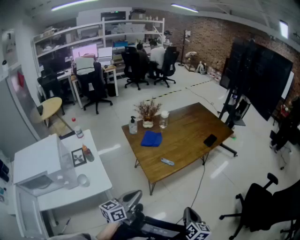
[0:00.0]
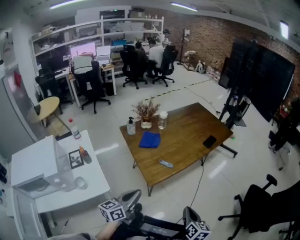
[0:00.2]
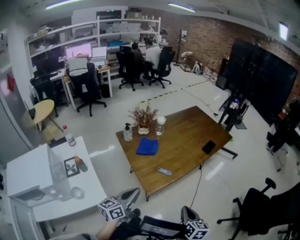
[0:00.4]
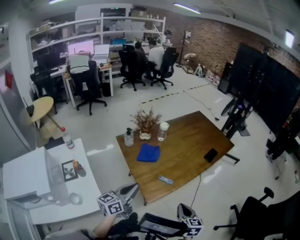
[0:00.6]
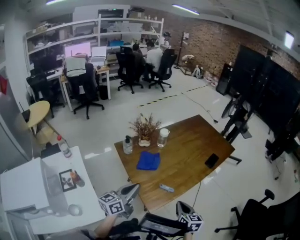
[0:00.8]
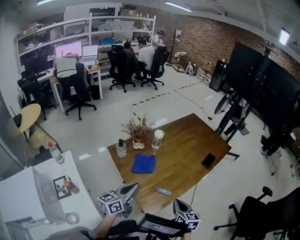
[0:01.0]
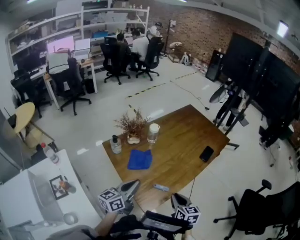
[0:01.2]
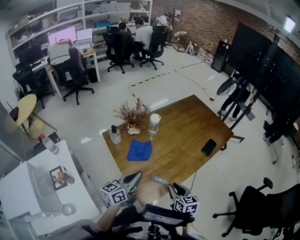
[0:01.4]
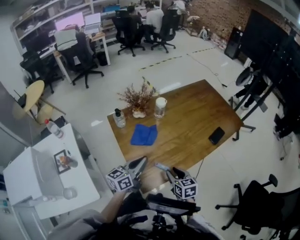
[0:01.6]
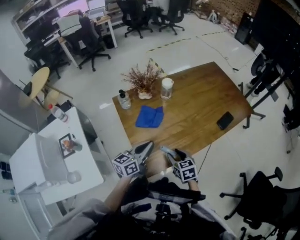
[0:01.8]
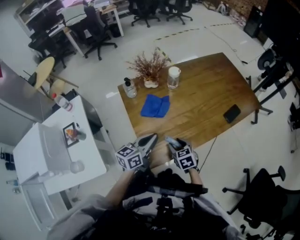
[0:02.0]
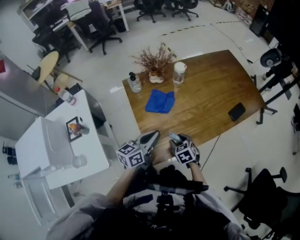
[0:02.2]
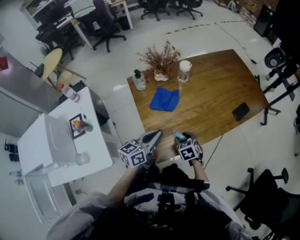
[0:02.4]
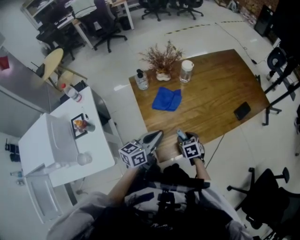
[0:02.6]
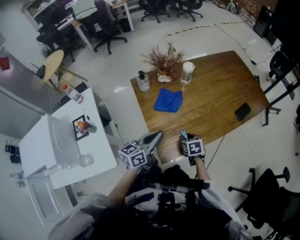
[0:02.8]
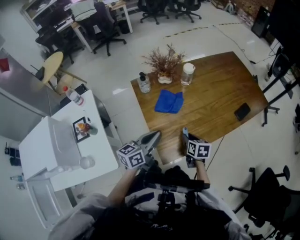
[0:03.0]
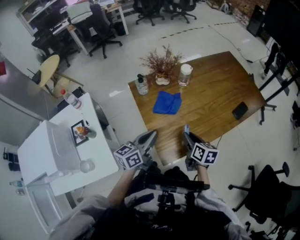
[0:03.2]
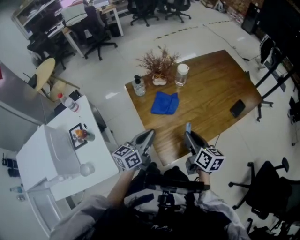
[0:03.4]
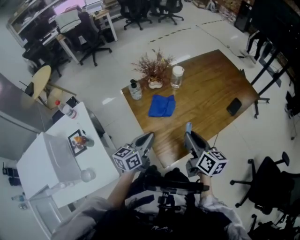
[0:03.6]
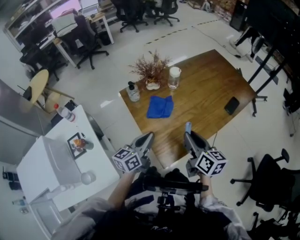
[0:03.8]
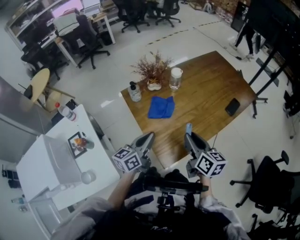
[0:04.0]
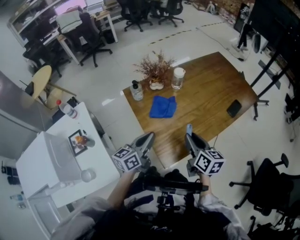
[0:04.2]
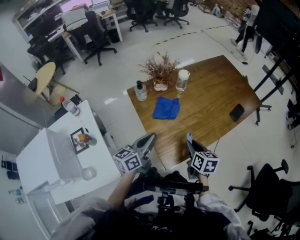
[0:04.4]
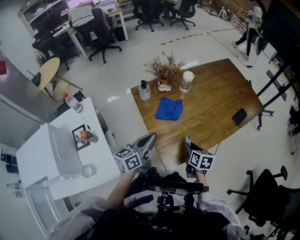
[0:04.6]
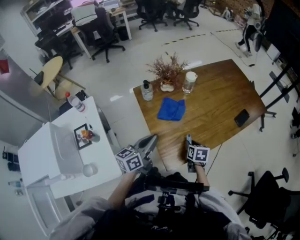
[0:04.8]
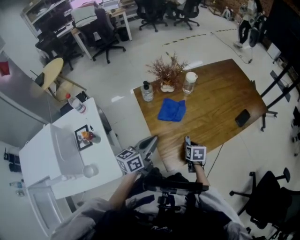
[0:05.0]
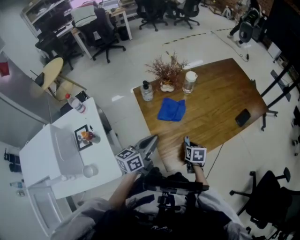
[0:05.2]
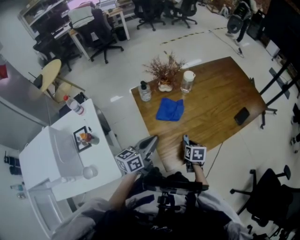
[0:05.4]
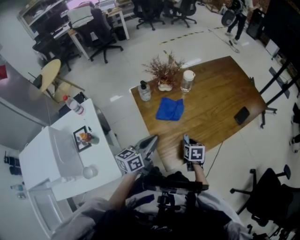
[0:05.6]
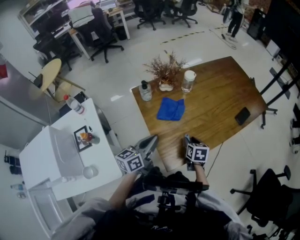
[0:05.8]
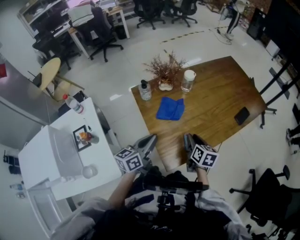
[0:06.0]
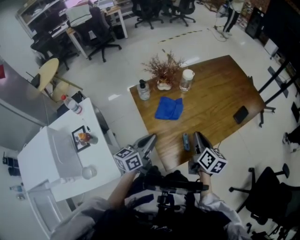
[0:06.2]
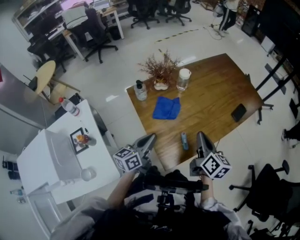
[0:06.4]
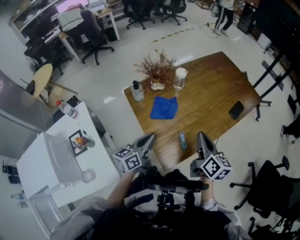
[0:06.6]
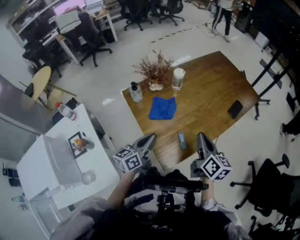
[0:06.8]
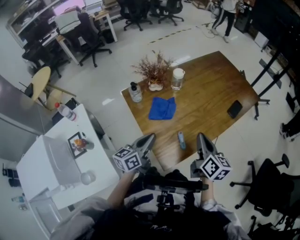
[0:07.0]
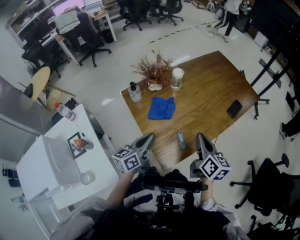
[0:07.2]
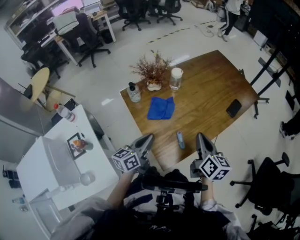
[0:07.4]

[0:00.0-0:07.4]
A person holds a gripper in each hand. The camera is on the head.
0.0 to 1.4 s: The left gripper is displaced forward by some 30 cm. Meanwhile the right gripper travels forward and to the left by about 30 cm, changes its angle by roughly 30 degrees, and opens its fingers.
1.4 to 3.0 s: The right gripper shifts roughly 10 cm forward, downward and to the left.
3.0 to 4.4 s: The right gripper shifts roughly 10 cm upward.
4.4 to 6.0 s: The right gripper travels downward and back again, roughly 15 cm each way.
6.0 to 7.4 s: The right gripper is displaced upward by about 10 cm, and closes its fingers.

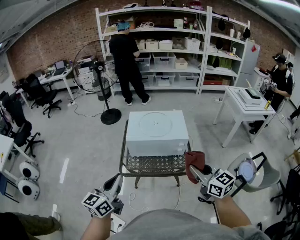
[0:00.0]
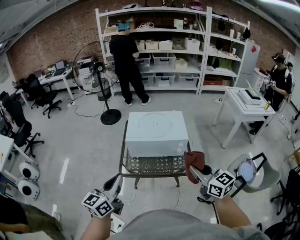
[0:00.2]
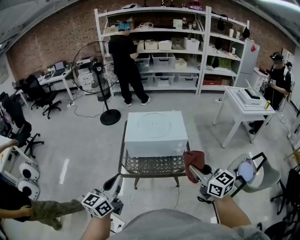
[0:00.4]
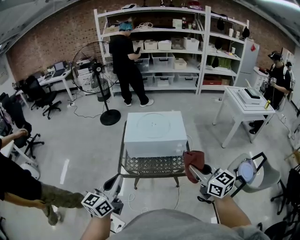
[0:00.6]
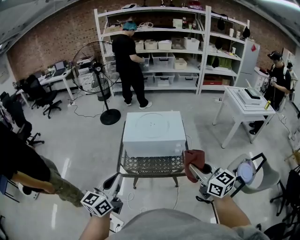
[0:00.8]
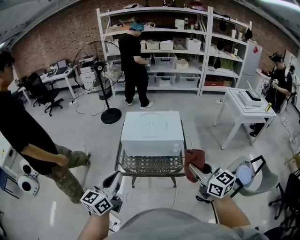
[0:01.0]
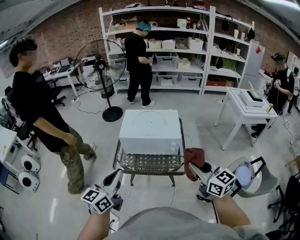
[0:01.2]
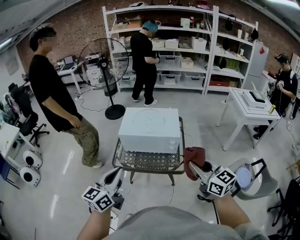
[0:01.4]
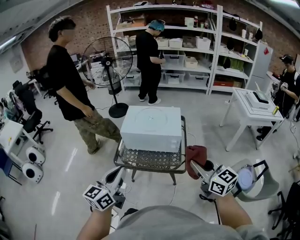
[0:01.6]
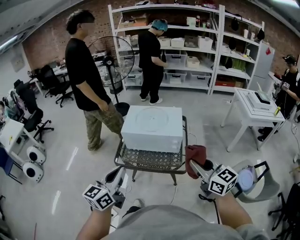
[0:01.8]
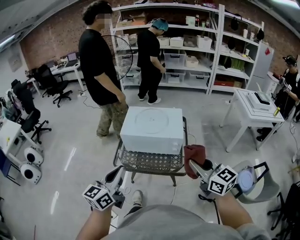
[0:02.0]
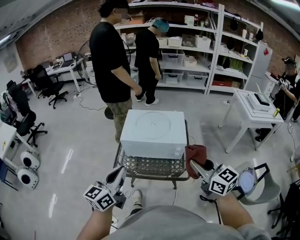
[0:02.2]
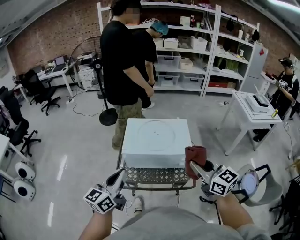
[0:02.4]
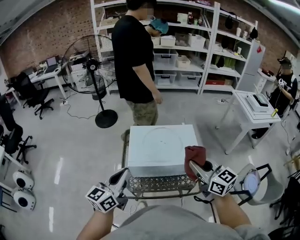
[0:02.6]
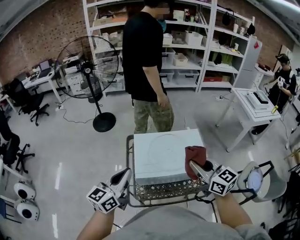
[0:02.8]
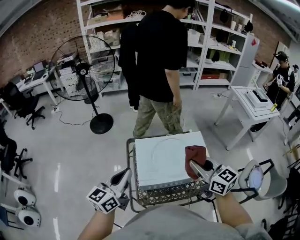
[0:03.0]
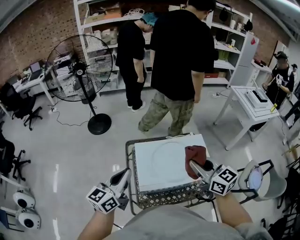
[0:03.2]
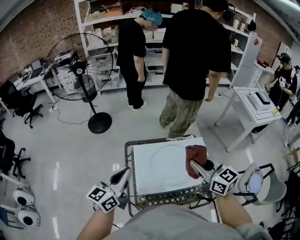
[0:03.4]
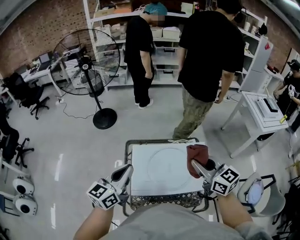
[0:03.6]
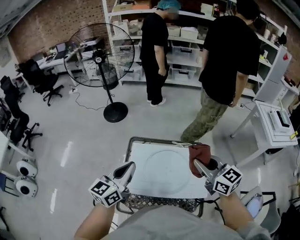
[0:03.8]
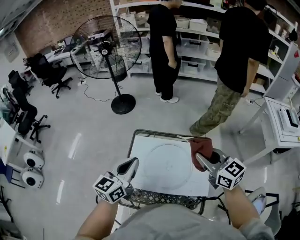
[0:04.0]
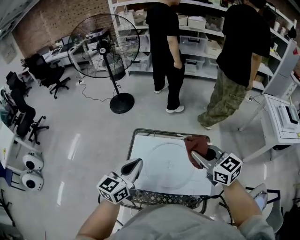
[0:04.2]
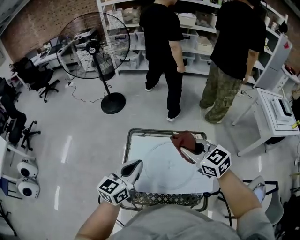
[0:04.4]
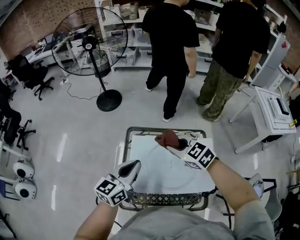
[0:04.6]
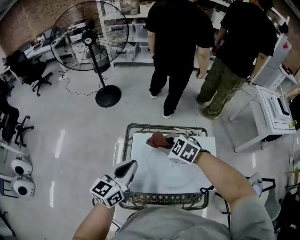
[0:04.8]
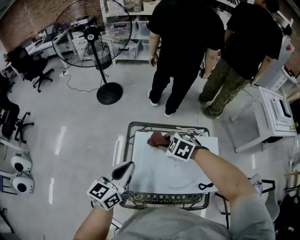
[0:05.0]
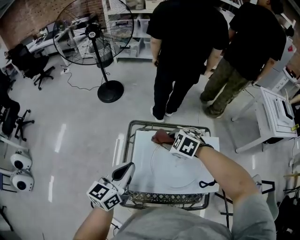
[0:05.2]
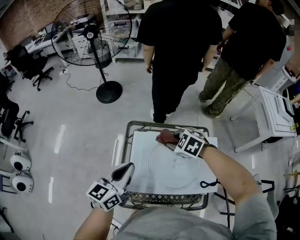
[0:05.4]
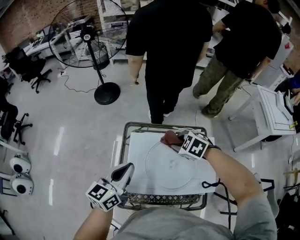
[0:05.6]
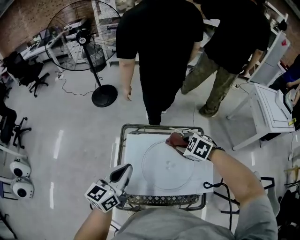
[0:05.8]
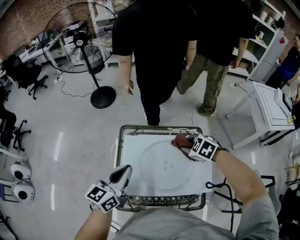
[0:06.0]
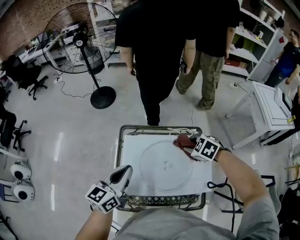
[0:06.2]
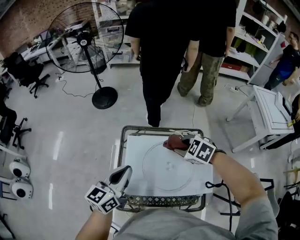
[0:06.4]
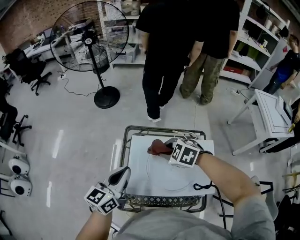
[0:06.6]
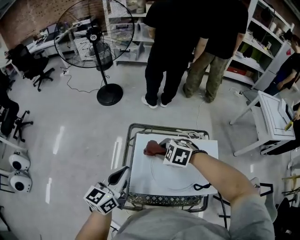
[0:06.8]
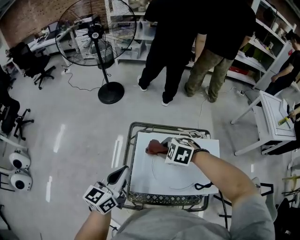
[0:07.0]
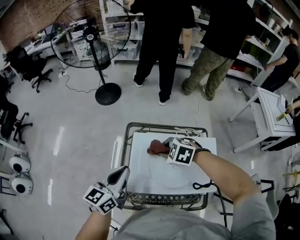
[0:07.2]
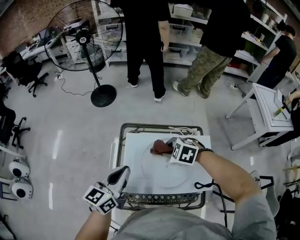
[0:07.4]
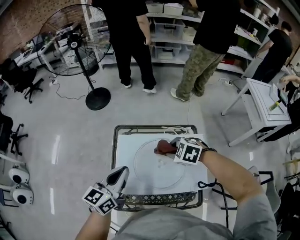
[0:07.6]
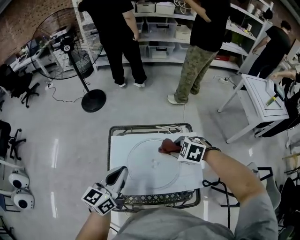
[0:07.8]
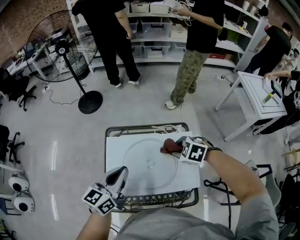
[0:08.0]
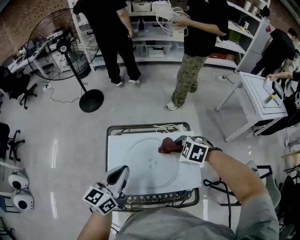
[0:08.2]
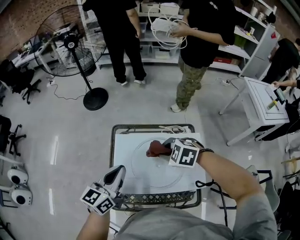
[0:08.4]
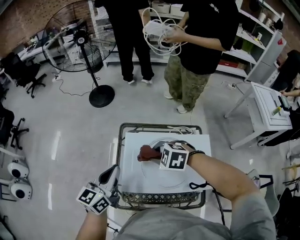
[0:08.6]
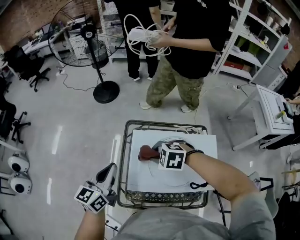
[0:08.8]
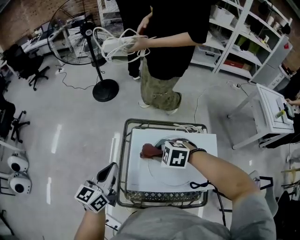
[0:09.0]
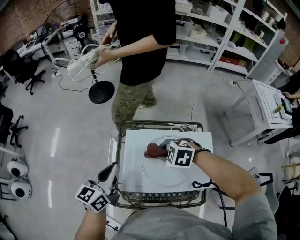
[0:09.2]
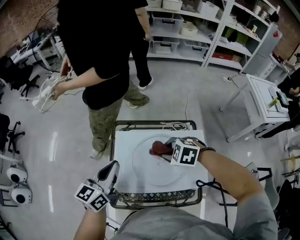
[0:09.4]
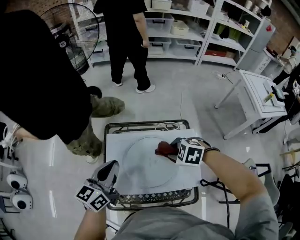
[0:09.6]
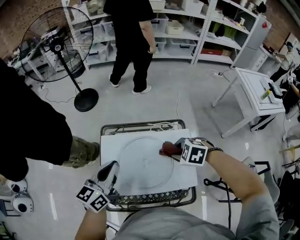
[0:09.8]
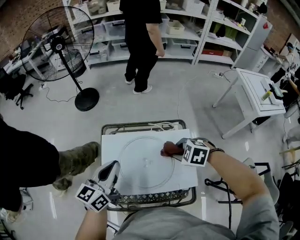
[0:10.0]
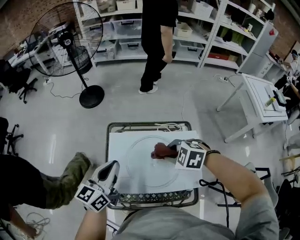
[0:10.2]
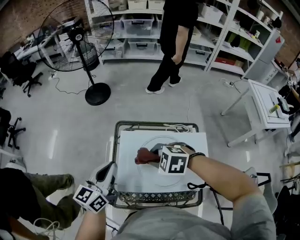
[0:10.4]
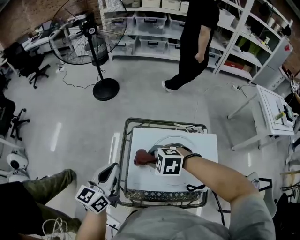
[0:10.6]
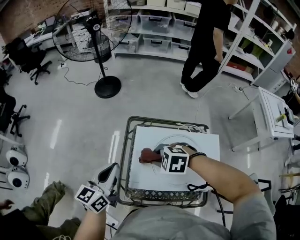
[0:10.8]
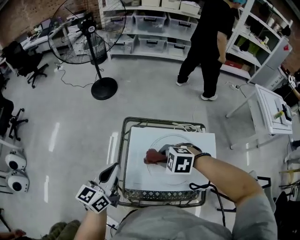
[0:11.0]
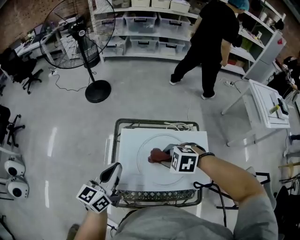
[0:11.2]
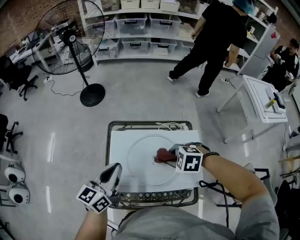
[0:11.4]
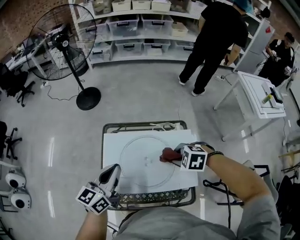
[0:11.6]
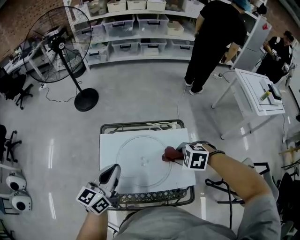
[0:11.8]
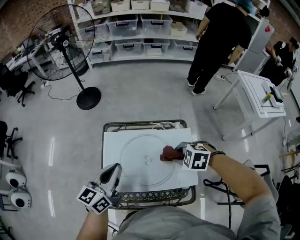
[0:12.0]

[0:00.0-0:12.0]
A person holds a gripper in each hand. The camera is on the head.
0.0 to 1.6 s: Both grippers travel together to the right, about 10 cm.
1.6 to 3.0 s: The pair of grippers is taken forward and to the left, some 40 cm.
3.0 to 4.4 s: The right gripper travels forward and downward by some 20 cm, and turns by about 30 degrees. Meanwhile the left gripper moves to the right, forward and downward, approximately 15 cm.
4.4 to 6.0 s: The right gripper is displaced downward by approximately 15 cm, goes to the left and returns, approximately 10 cm each way, and tips its fingers downward by roughly 40 degrees.
6.0 to 7.6 s: The right gripper goes to the left and returns, approximately 20 cm each way.
7.6 to 9.0 s: The grippers both shift to the left by roughly 10 cm.
9.0 to 10.4 s: The right gripper reaches some 20 cm to the right, then returns. Meanwhile the left gripper goes roughly 5 cm to the right.
10.4 to 12.0 s: The left gripper shifts some 10 cm to the right. Meanwhile the right gripper shifts roughly 20 cm to the right and backward.

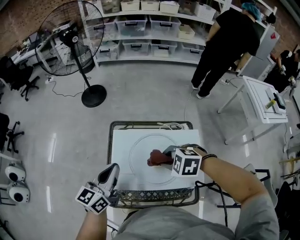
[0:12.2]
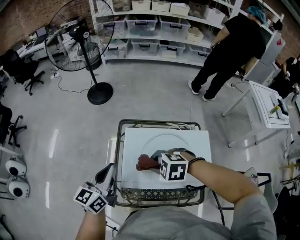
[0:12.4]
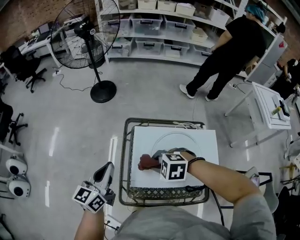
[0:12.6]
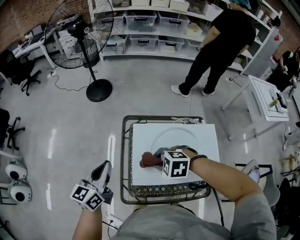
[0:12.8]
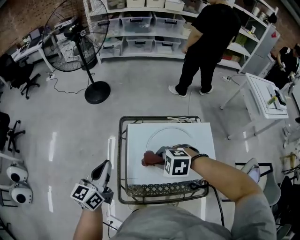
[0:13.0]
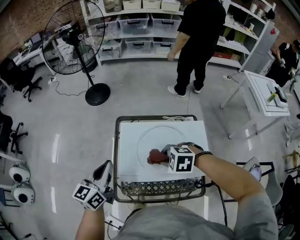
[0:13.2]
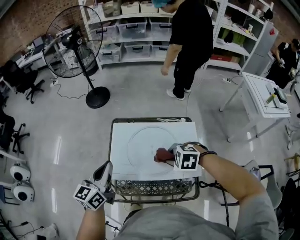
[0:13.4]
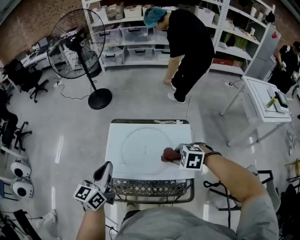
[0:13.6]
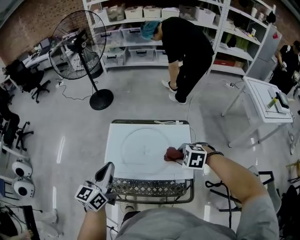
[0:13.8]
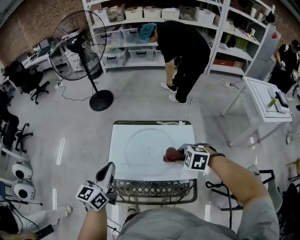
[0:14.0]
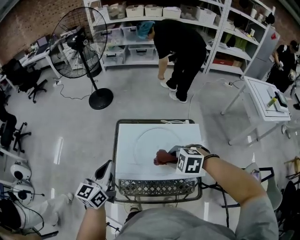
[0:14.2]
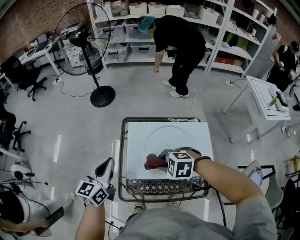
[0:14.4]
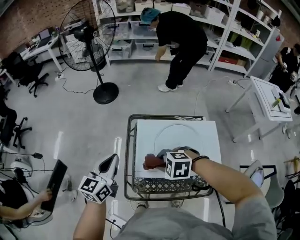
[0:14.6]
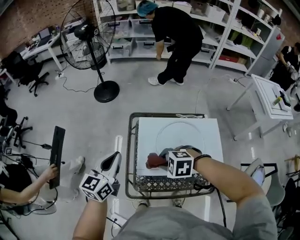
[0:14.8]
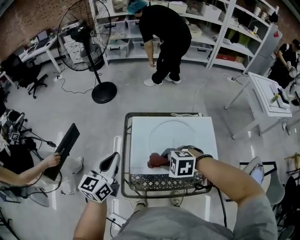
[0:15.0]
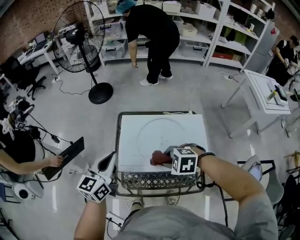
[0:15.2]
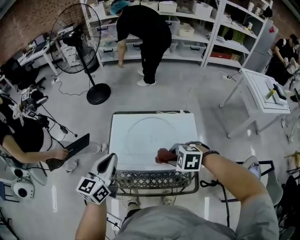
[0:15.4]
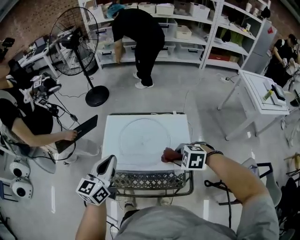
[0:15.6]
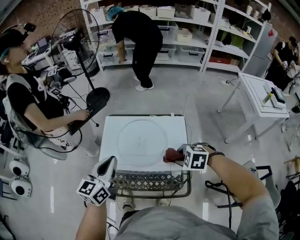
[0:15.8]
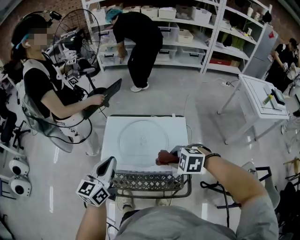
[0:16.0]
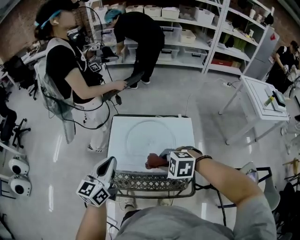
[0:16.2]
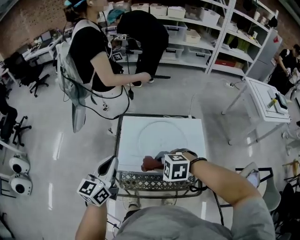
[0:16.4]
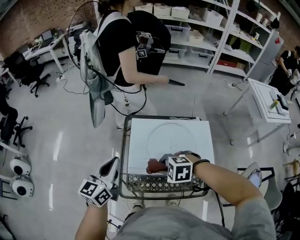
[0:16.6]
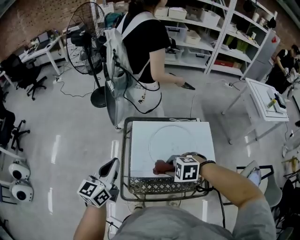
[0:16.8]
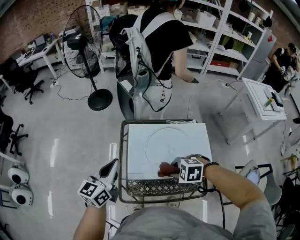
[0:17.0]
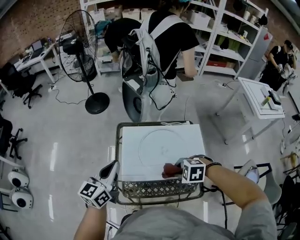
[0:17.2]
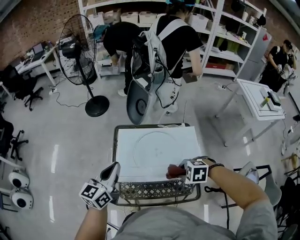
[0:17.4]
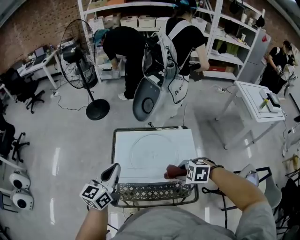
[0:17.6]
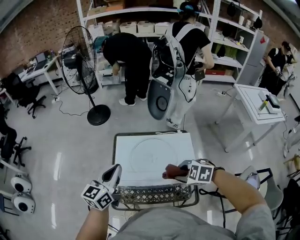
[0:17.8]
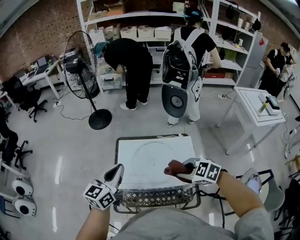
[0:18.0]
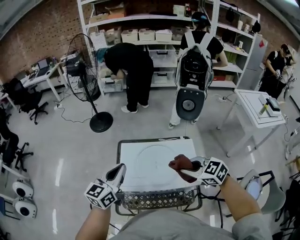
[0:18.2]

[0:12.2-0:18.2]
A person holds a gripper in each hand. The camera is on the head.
12.2 to 13.8 s: The right gripper moves to the right and backward, approximately 15 cm; the left gripper heads backward, covering roughly 5 cm, and reaches about 15 cm to the left, then returns.
13.8 to 15.2 s: The left gripper is displaced to the left and forward by roughly 10 cm, while the right gripper heads to the left, covering about 15 cm.
15.2 to 16.6 s: The right gripper goes to the right and returns, about 15 cm each way; the left gripper reaches roughly 10 cm to the right, then returns.
16.6 to 18.2 s: The right gripper is displaced to the right and upward by roughly 20 cm, and changes its angle by approximately 50 degrees. Meanwhile the left gripper goes roughly 10 cm to the right and upward.
